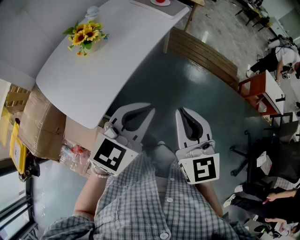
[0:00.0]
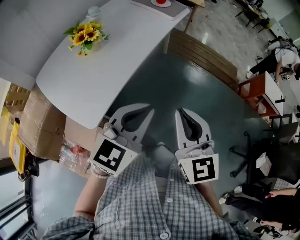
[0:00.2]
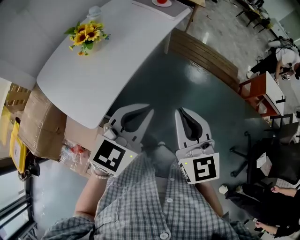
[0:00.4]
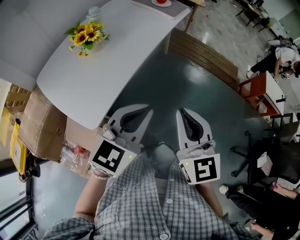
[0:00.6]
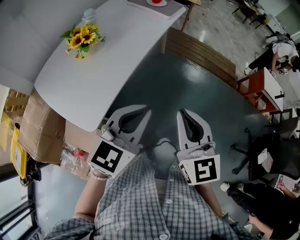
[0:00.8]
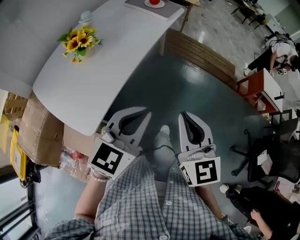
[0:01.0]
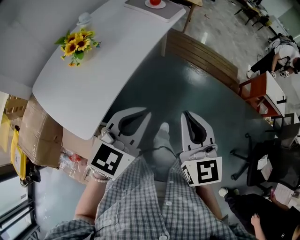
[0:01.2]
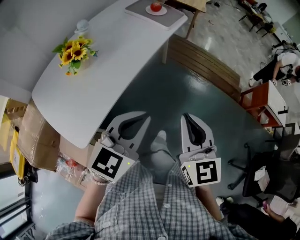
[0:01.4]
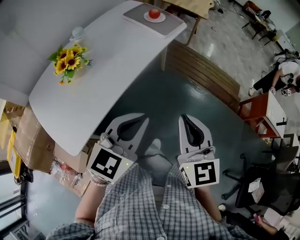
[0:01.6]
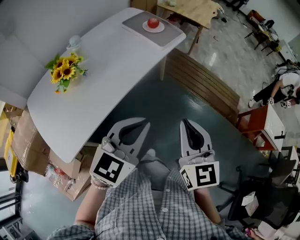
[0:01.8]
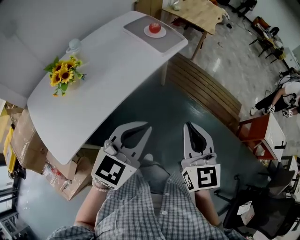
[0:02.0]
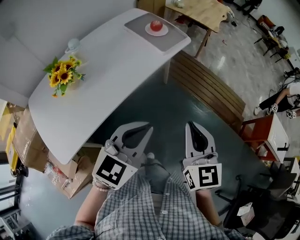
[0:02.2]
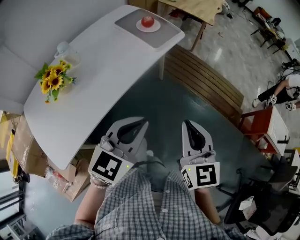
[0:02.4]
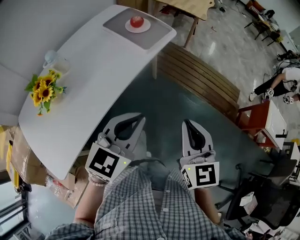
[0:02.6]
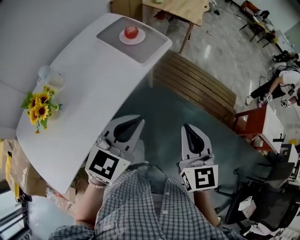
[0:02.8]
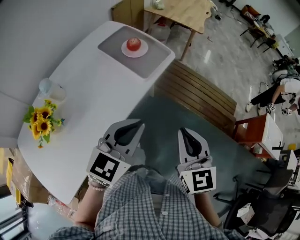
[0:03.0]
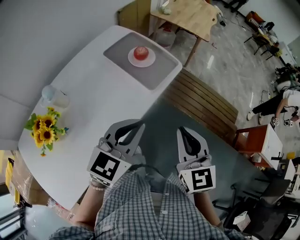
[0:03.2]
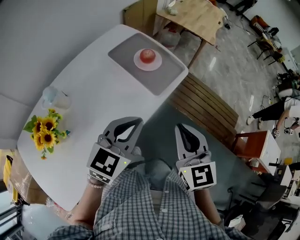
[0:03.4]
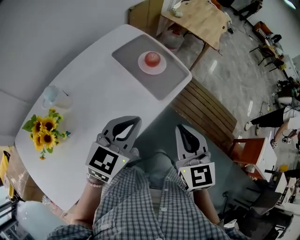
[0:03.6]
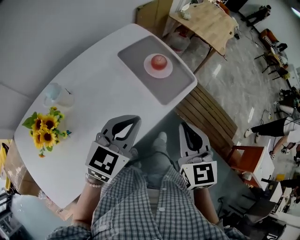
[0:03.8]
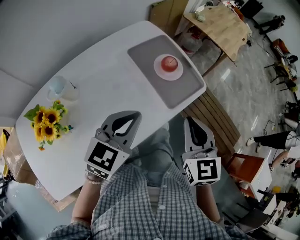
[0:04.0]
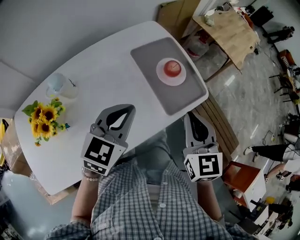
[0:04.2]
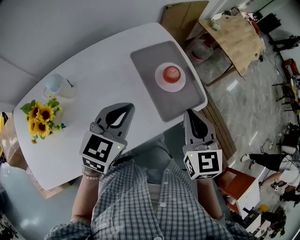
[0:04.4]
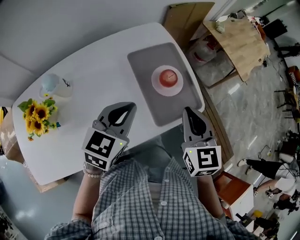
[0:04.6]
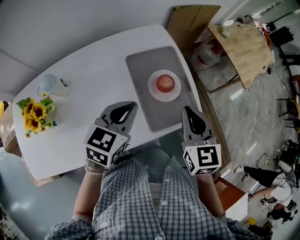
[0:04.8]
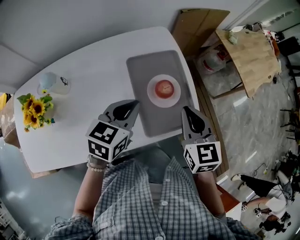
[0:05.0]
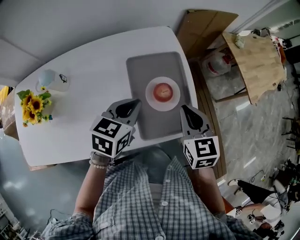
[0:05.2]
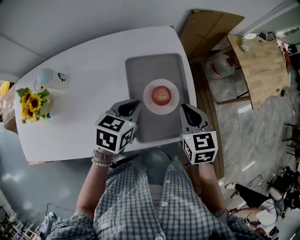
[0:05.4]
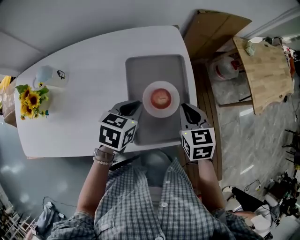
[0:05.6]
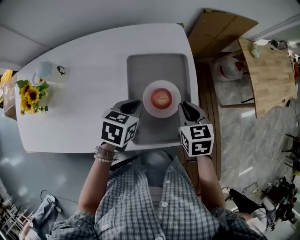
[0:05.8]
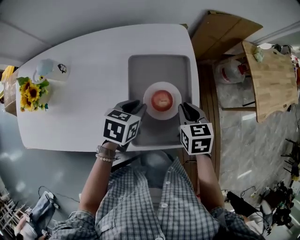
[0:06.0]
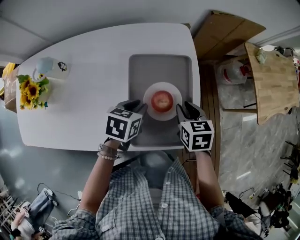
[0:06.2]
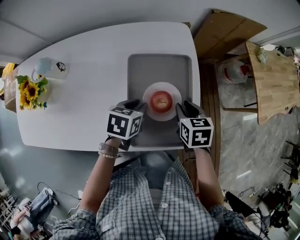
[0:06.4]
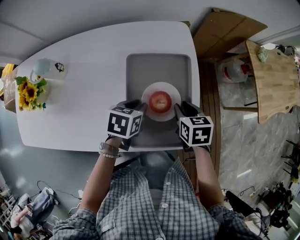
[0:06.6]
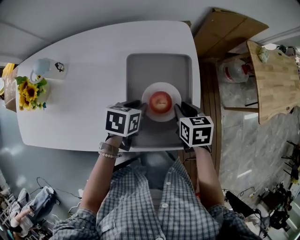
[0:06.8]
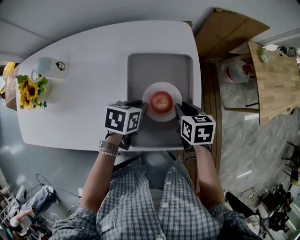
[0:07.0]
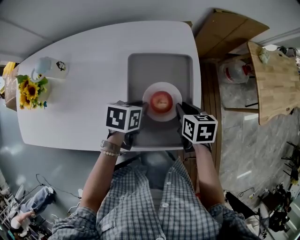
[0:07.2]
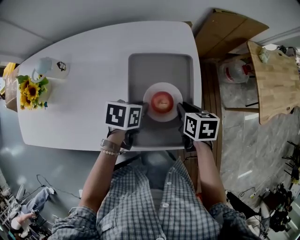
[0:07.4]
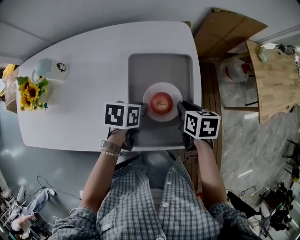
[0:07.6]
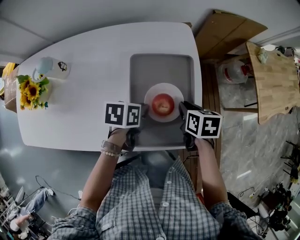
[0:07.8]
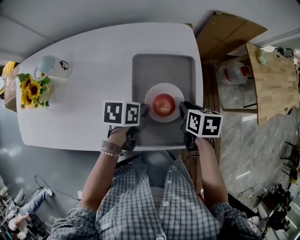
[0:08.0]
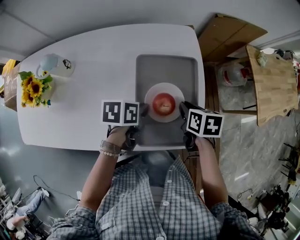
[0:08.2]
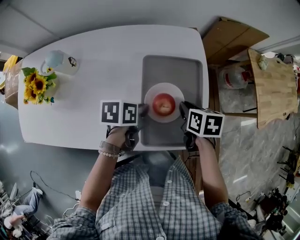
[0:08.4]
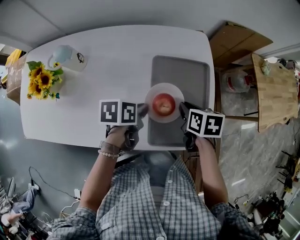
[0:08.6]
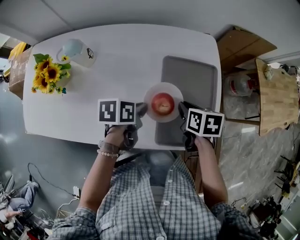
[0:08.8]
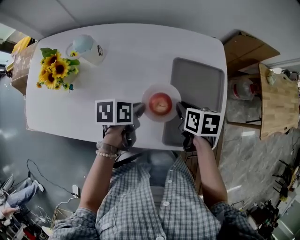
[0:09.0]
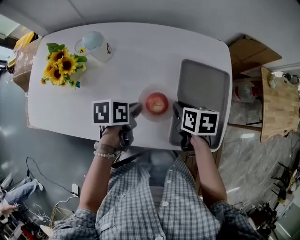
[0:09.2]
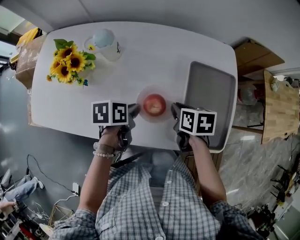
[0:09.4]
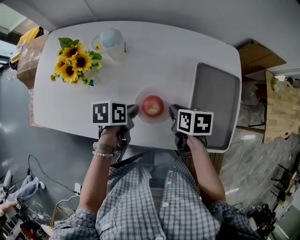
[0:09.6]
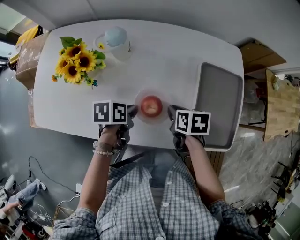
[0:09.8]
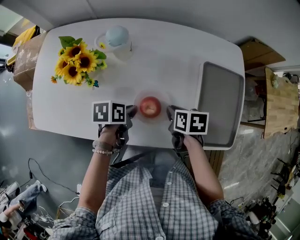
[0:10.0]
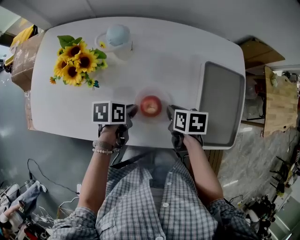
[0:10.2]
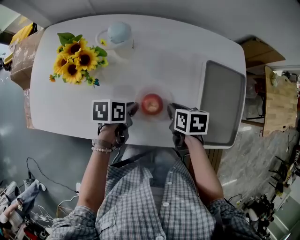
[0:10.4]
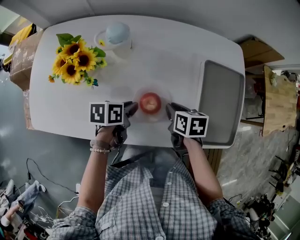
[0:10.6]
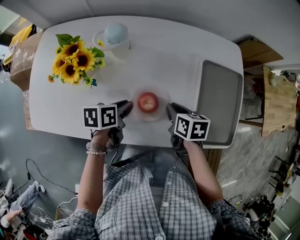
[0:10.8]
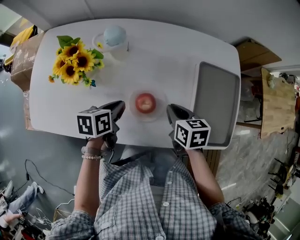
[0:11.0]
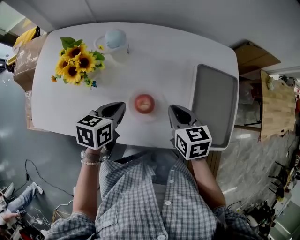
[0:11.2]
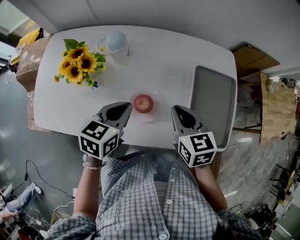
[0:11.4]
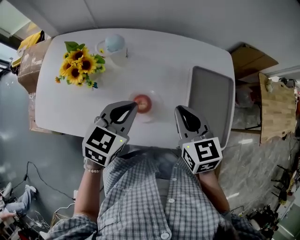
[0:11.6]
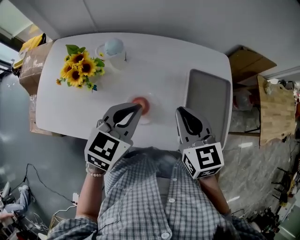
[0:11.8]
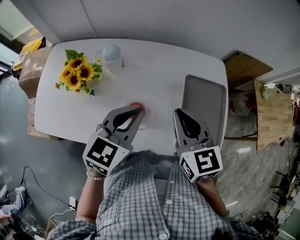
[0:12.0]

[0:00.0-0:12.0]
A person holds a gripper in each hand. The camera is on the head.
0:00.0 to 0:01.6: The left gripper heads forward, covering some 15 cm. The right gripper travels forward and to the right by approximately 20 cm.
0:01.6 to 0:03.0: The grippers both shift forward by roughly 25 cm.
0:03.0 to 0:04.4: The right gripper shifts roughly 30 cm forward, and changes its angle by some 20 degrees, while the left gripper moves forward and to the left, roughly 25 cm, and turns by approximately 30 degrees.
0:04.4 to 0:06.0: The left gripper goes some 20 cm downward, forward and to the right, and changes its angle by approximately 50 degrees. Meanwhile the right gripper heads forward and downward, covering roughly 25 cm, and turns by approximately 40 degrees.
0:06.0 to 0:07.6: The left gripper turns by about 20 degrees, while the right gripper changes its angle by some 20 degrees.
0:07.6 to 0:09.0: Both grippers move to the left, roughly 15 cm.
0:09.0 to 0:10.4: Both grippers travel together to the left, about 15 cm.
0:10.4 to 0:12.0: Both grippers move upward, some 25 cm. The right gripper tips its fingers upward by about 40 degrees; the left gripper rolls clockwise, seen from behind, by approximately 50 degrees.

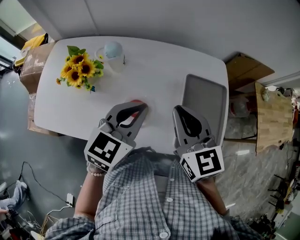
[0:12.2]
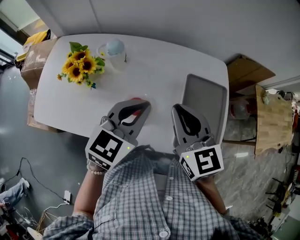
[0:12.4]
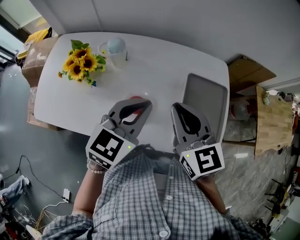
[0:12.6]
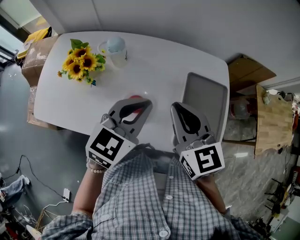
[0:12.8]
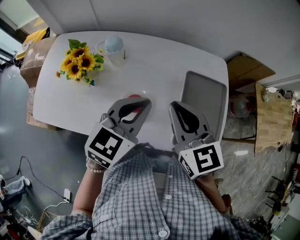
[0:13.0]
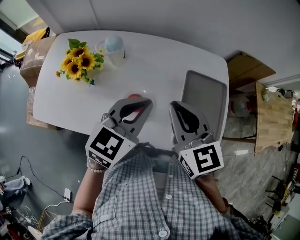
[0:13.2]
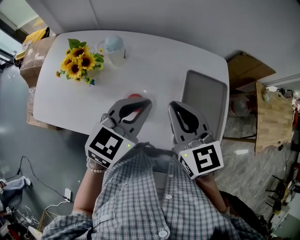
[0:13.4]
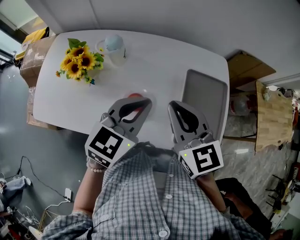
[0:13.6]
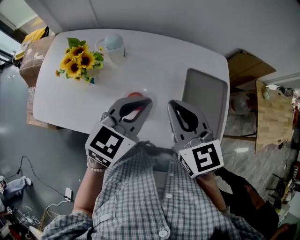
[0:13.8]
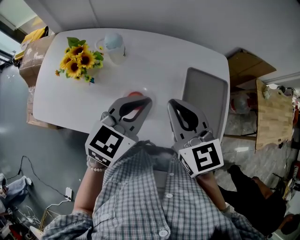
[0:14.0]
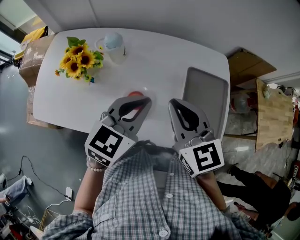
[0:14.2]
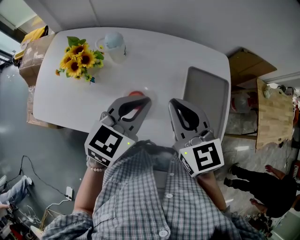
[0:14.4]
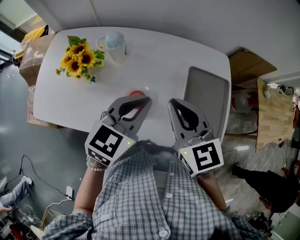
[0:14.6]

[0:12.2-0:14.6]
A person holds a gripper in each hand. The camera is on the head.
0:12.2 to 0:13.4: The grippers move only a little.
0:13.4 to 0:14.6: Both grippers stay about where they are.

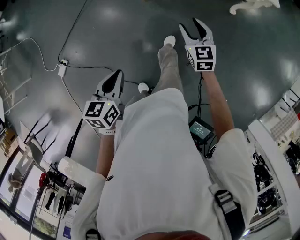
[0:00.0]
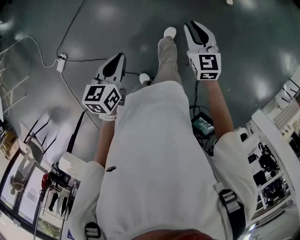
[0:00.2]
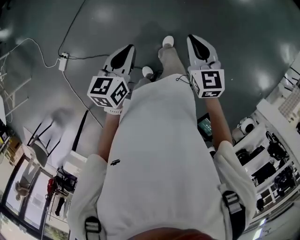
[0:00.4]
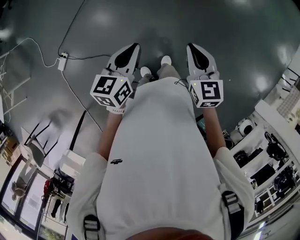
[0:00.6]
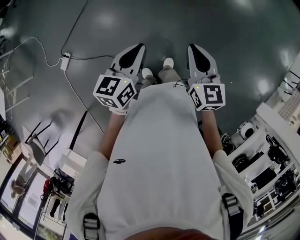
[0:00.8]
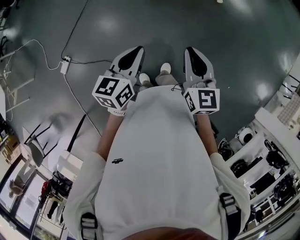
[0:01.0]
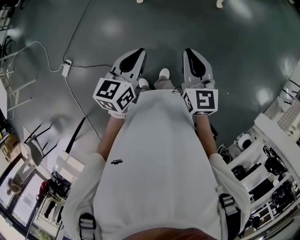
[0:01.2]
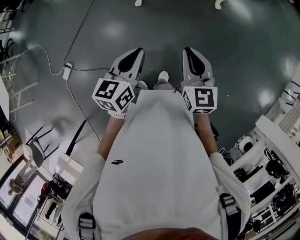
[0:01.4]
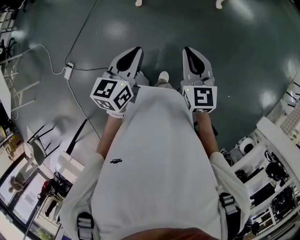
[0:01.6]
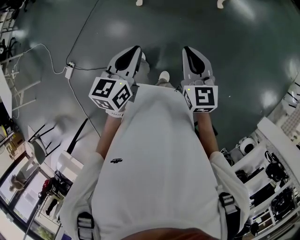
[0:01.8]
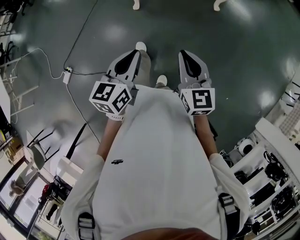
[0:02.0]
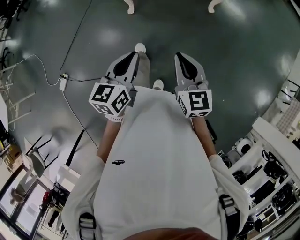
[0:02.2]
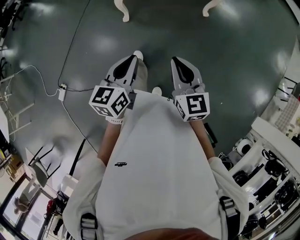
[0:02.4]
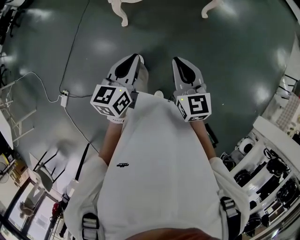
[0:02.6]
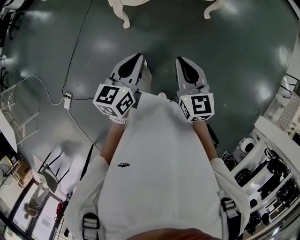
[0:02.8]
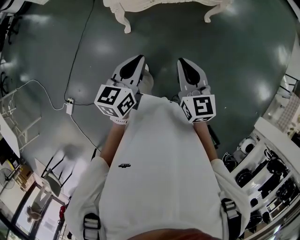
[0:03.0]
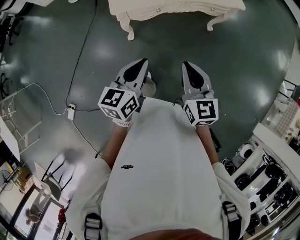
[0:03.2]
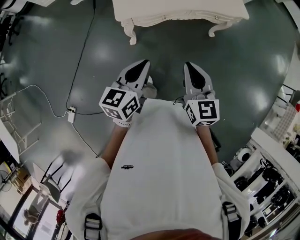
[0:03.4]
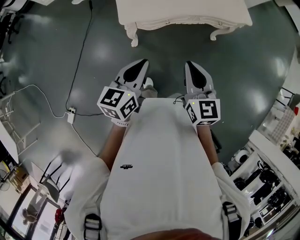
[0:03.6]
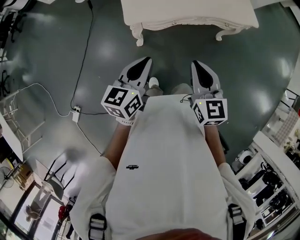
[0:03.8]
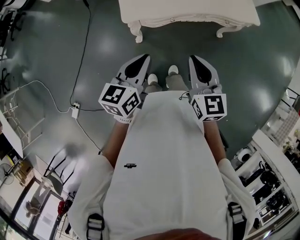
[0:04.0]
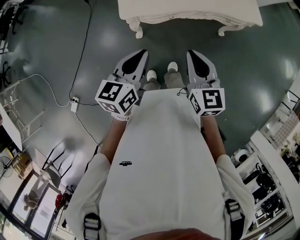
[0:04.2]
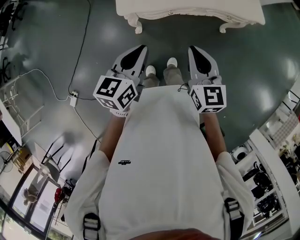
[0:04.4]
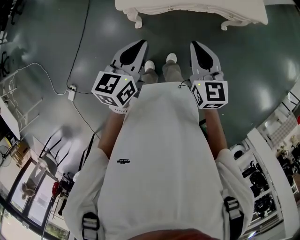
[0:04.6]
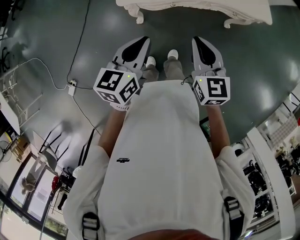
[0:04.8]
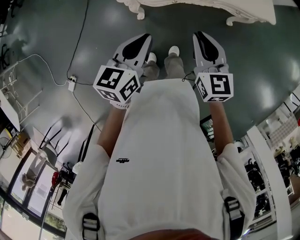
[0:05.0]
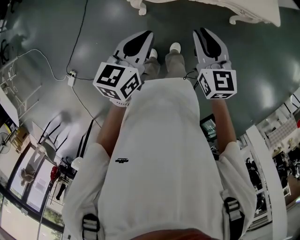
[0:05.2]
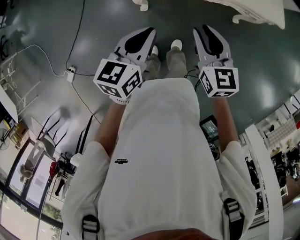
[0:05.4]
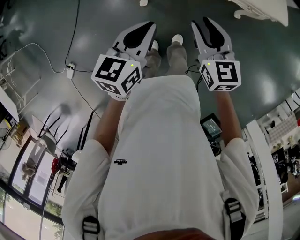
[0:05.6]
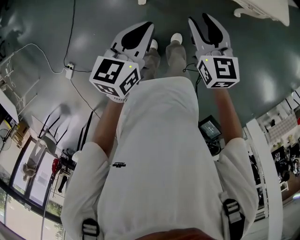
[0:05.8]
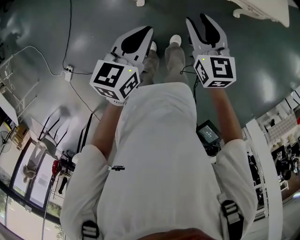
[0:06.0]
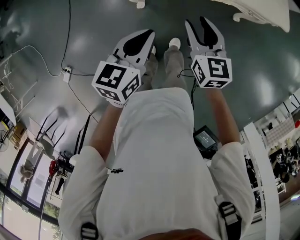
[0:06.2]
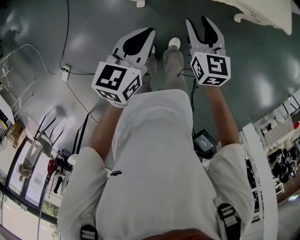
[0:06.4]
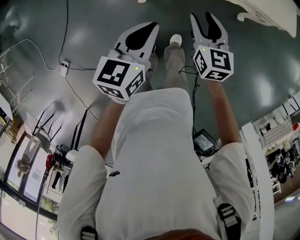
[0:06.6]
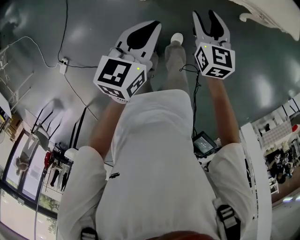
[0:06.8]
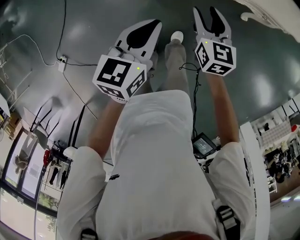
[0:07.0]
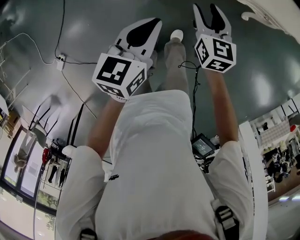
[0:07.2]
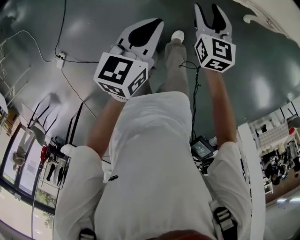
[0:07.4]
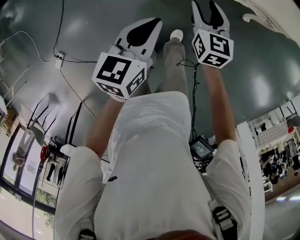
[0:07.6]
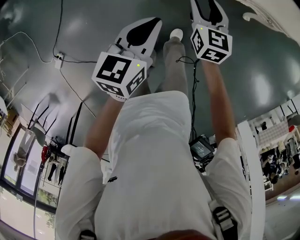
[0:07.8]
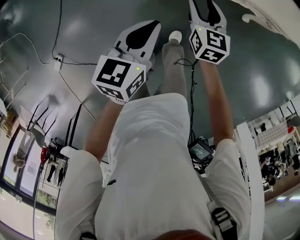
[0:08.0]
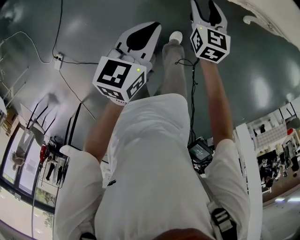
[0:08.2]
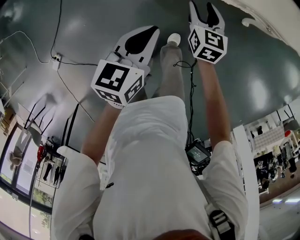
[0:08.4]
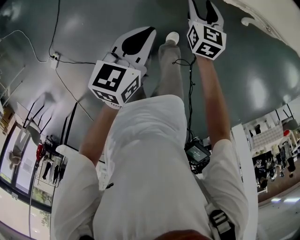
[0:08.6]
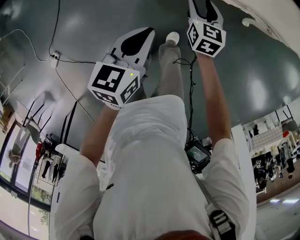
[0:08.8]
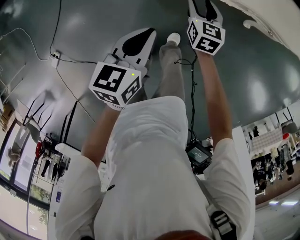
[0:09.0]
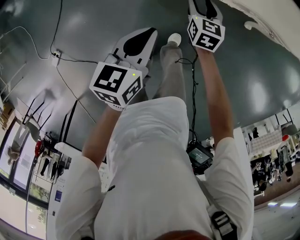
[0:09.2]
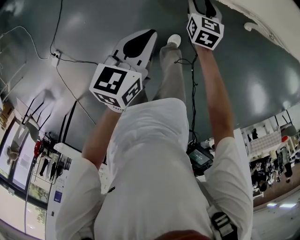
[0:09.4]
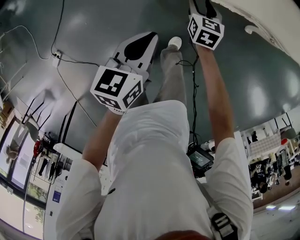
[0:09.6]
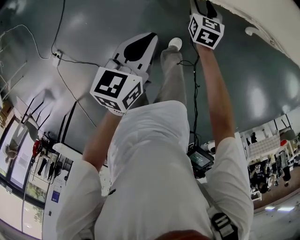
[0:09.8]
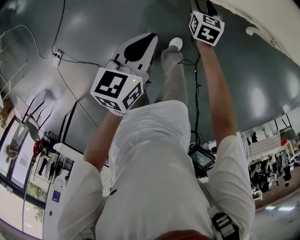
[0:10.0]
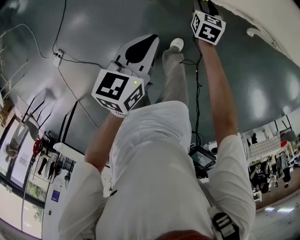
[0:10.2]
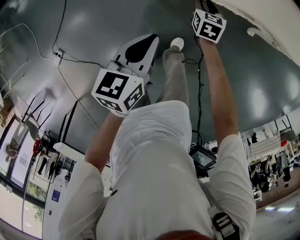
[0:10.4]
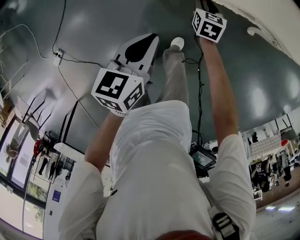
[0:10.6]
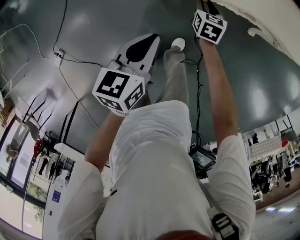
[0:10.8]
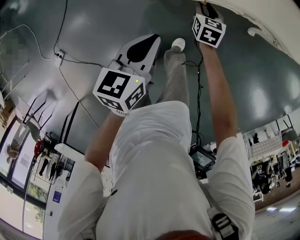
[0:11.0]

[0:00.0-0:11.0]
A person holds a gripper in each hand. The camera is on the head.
0:00.0 to 0:01.6: The left gripper goes approximately 25 cm to the right and upward, and turns by about 20 degrees, while the right gripper is displaced backward, upward and to the right by about 35 cm, and closes its fingers.
0:01.6 to 0:03.2: Both grippers move forward, some 30 cm.
0:03.2 to 0:04.8: Both grippers move forward, about 15 cm.
0:04.8 to 0:06.2: The right gripper moves downward and forward, some 10 cm, and opens its fingers. The left gripper is displaced downward by approximately 10 cm.
0:06.2 to 0:07.8: The right gripper moves downward and forward, some 15 cm, while the left gripper moves downward, roughly 5 cm.
0:07.8 to 0:09.4: The right gripper goes about 15 cm downward and forward.
0:09.4 to 0:11.0: The grippers move only a little.
